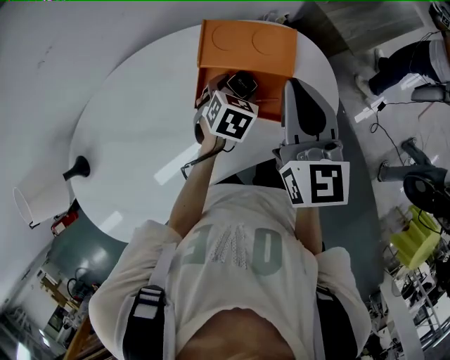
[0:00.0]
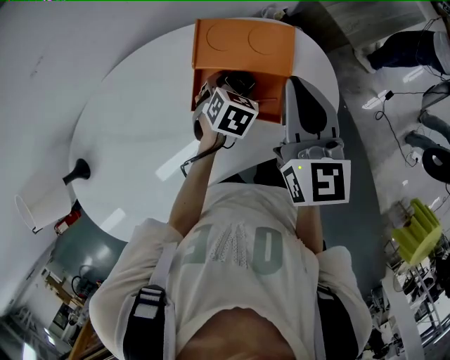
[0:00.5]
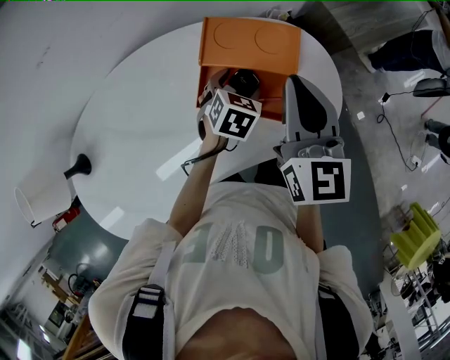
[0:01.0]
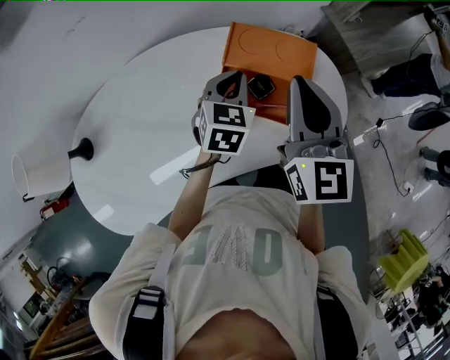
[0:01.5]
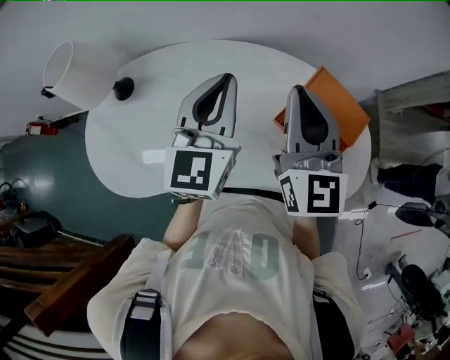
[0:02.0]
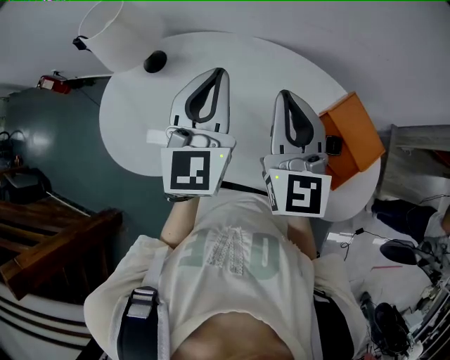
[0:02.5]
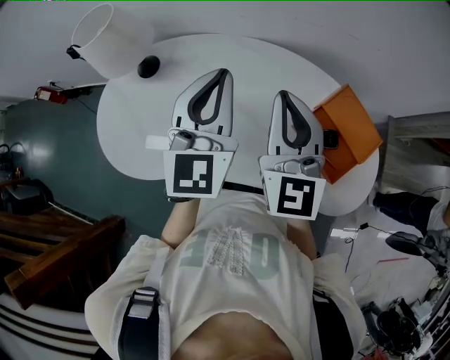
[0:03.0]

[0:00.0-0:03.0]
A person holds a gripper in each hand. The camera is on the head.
0:00.0 to 0:01.5: The right gripper changes place by approximately 5 cm; the left gripper goes some 10 cm upward and to the left, rotates roughly 20 degrees, and closes its fingers.
0:01.5 to 0:03.0: The left gripper ends up some 35 cm from where it was, and angles its fingers upward, by some 40 degrees. The right gripper ends up some 25 cm from where it was, and changes its angle by approximately 30 degrees.

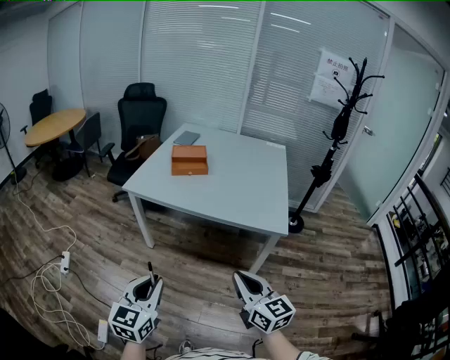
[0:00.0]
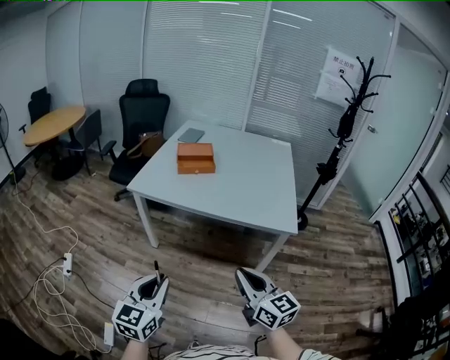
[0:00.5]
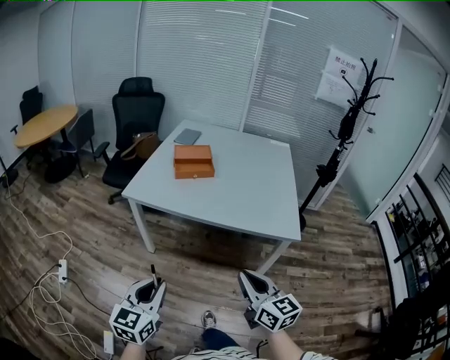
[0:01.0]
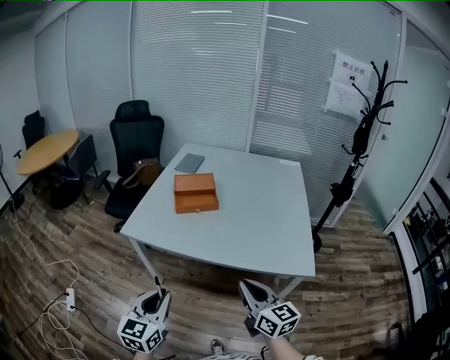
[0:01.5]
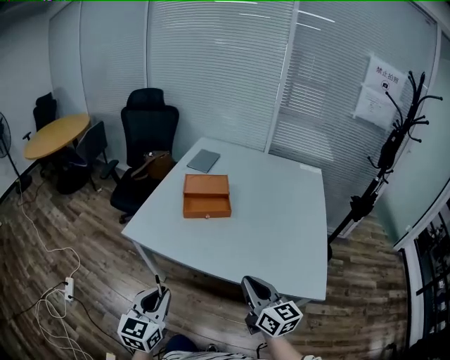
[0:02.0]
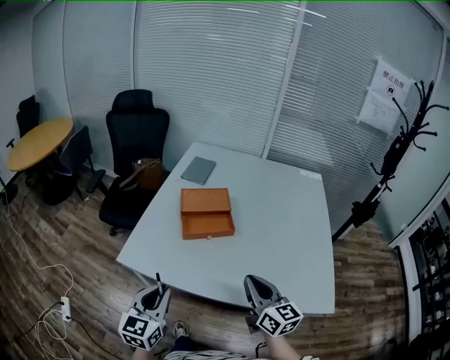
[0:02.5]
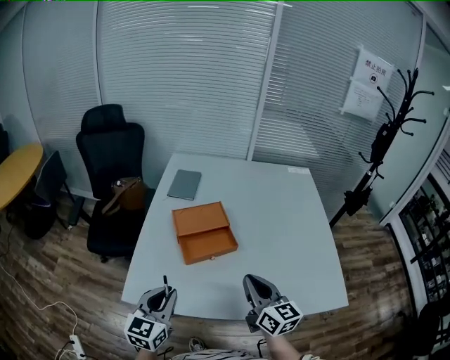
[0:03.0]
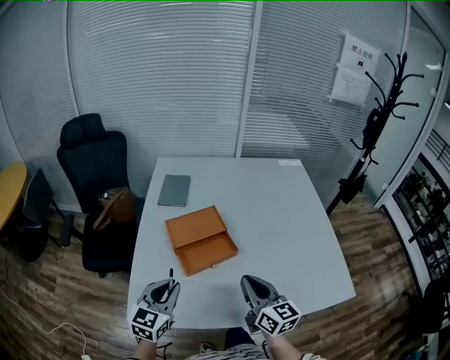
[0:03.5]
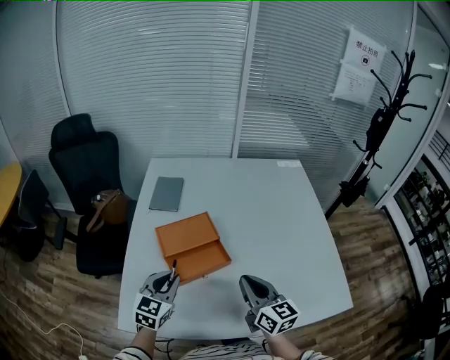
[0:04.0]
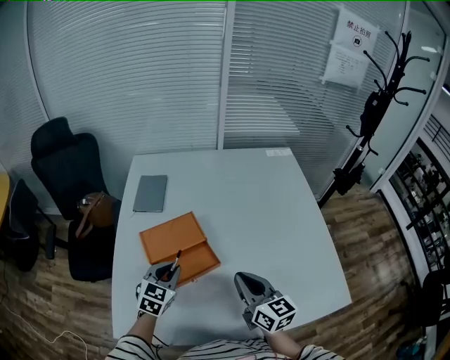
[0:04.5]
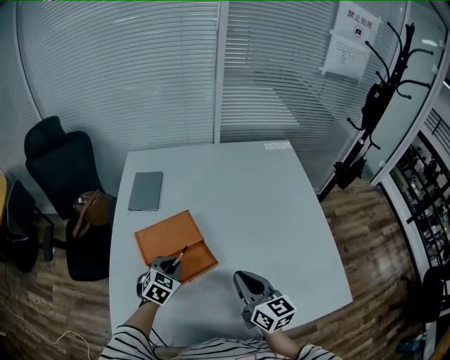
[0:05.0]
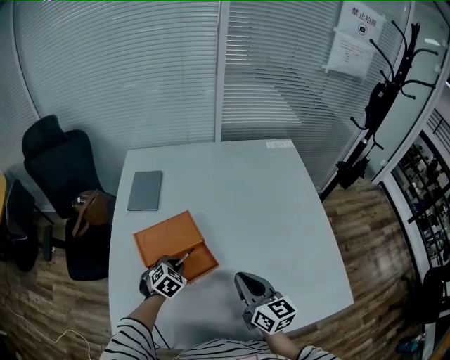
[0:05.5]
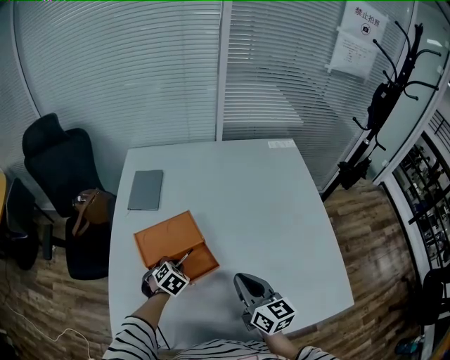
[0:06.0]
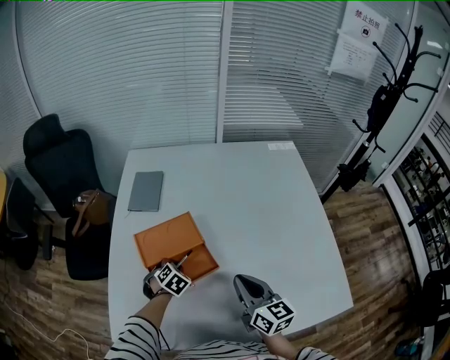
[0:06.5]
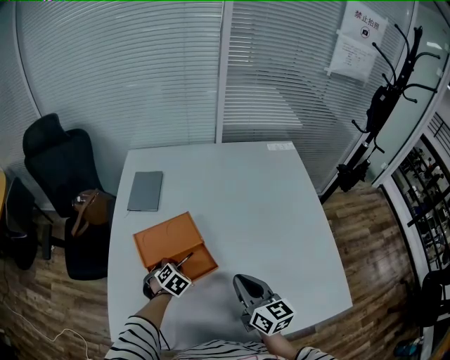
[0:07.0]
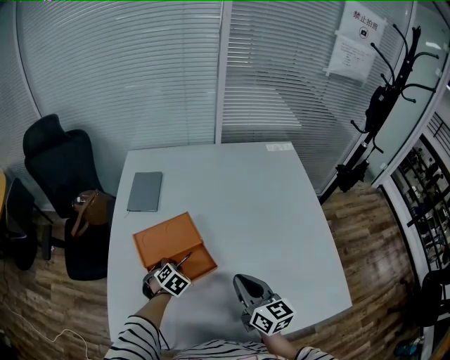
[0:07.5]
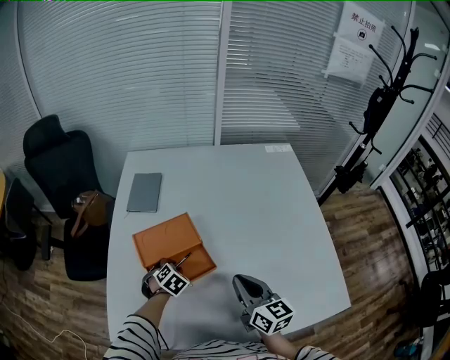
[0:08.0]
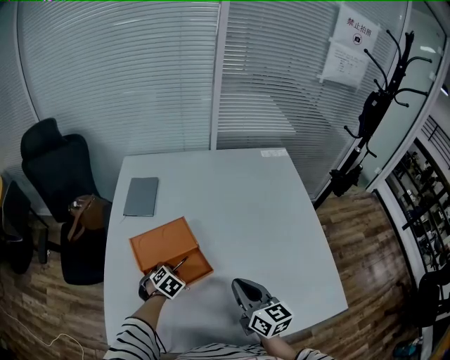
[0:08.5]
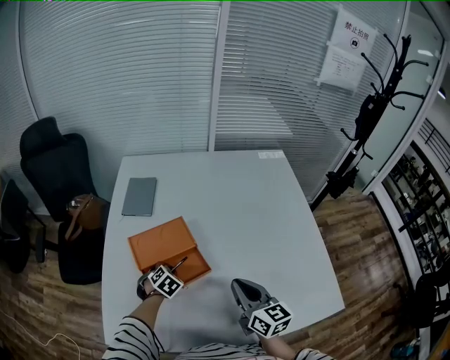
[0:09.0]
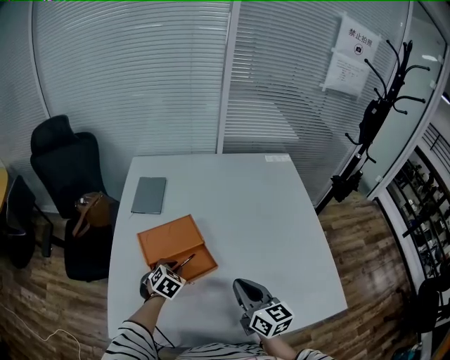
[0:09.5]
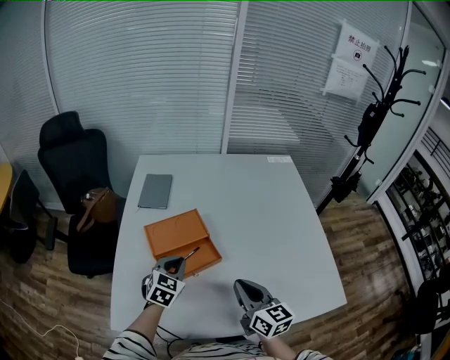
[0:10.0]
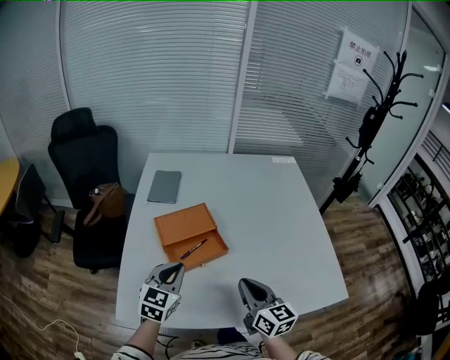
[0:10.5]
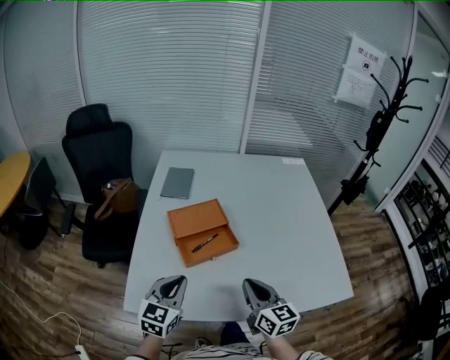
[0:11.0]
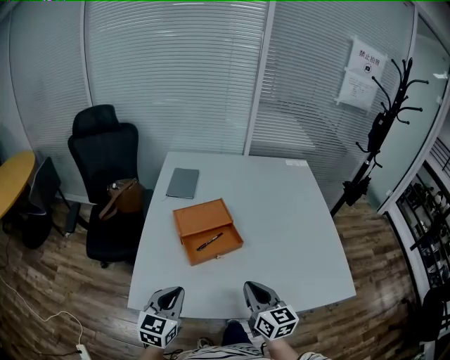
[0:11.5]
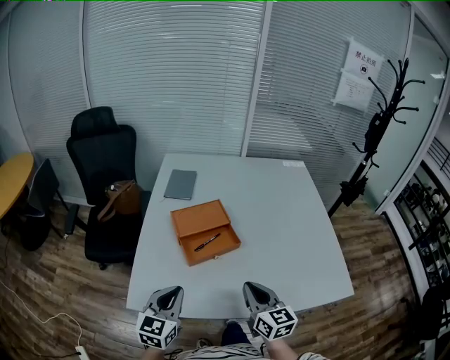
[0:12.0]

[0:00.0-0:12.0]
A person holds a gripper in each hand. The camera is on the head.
0:00.0 to 0:02.0: Both grippers move forward, some 35 cm.
0:02.0 to 0:04.0: Both grippers travel together forward, about 35 cm. The right gripper changes its angle by roughly 20 degrees. The left gripper rotates about 30 degrees.
0:04.0 to 0:06.0: The right gripper travels forward by approximately 5 cm, while the left gripper shifts approximately 20 cm downward and forward, and angles its fingers downward, by some 40 degrees.
0:06.0 to 0:08.0: The two grippers keep their place.
0:08.0 to 0:10.0: The left gripper heads upward, covering about 15 cm, and tilts its fingers approximately 30 degrees upward. Meanwhile the right gripper moves backward, about 5 cm.
0:10.0 to 0:12.0: The right gripper is displaced backward by approximately 10 cm; the left gripper goes some 20 cm backward, and rotates roughly 20 degrees.

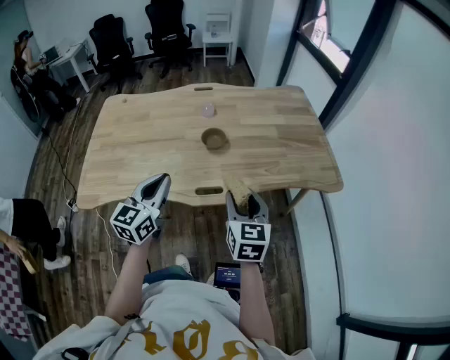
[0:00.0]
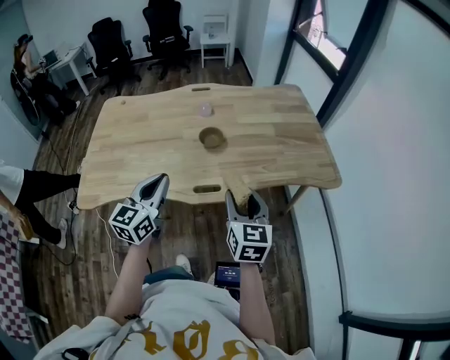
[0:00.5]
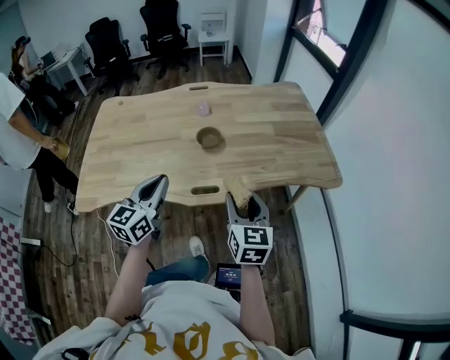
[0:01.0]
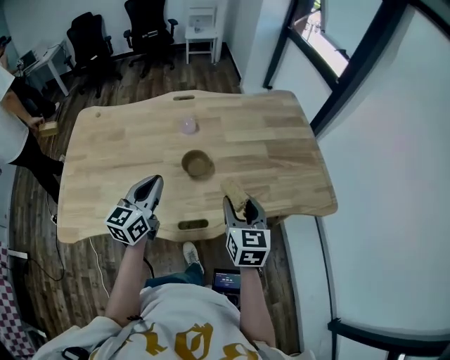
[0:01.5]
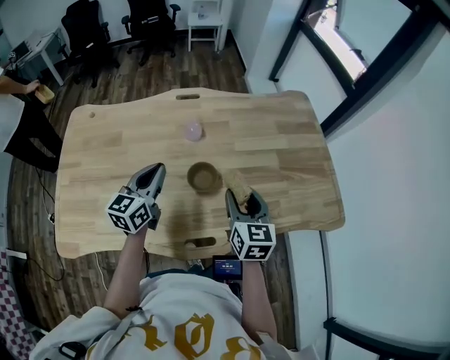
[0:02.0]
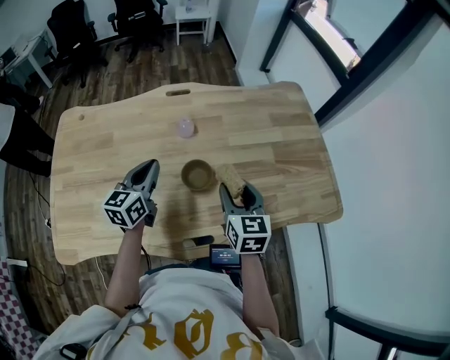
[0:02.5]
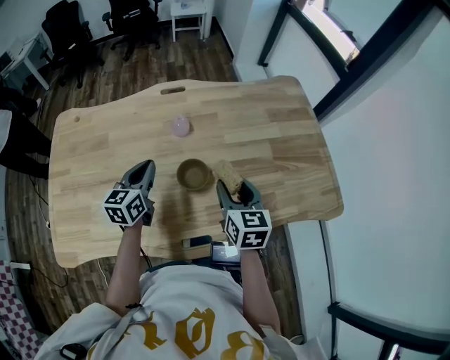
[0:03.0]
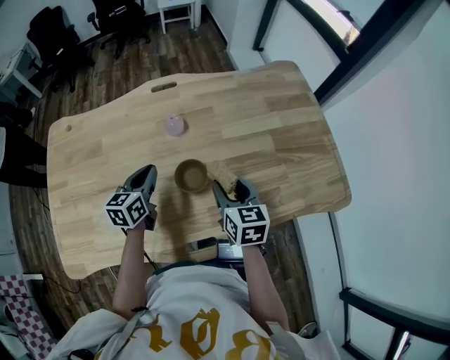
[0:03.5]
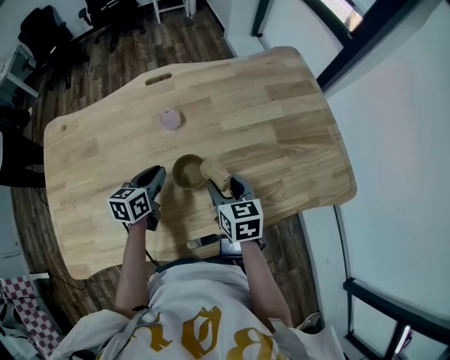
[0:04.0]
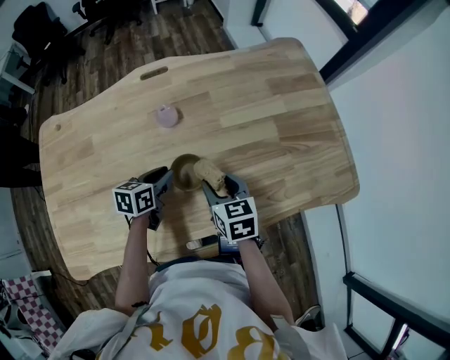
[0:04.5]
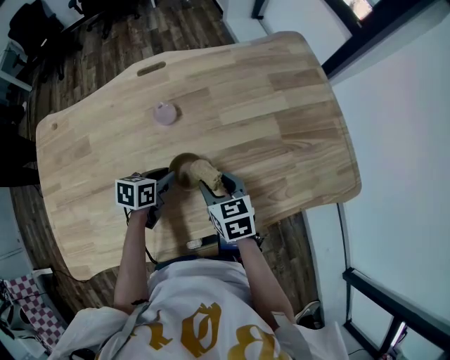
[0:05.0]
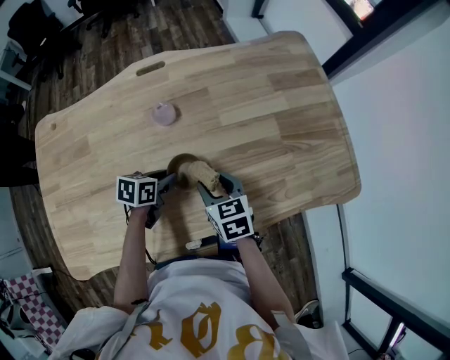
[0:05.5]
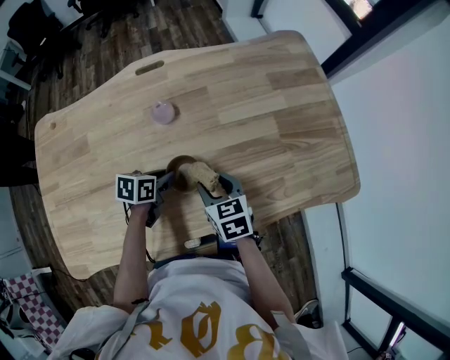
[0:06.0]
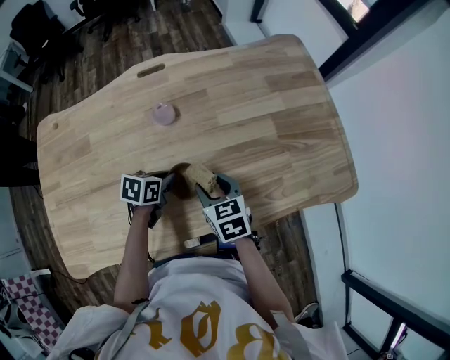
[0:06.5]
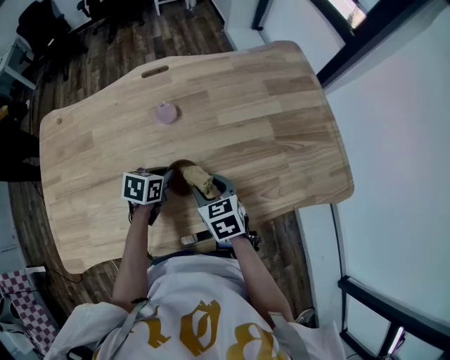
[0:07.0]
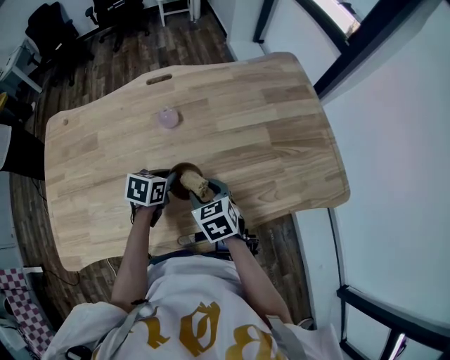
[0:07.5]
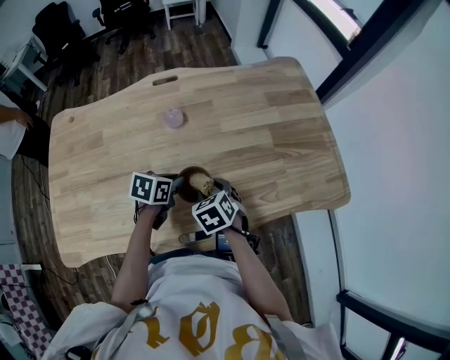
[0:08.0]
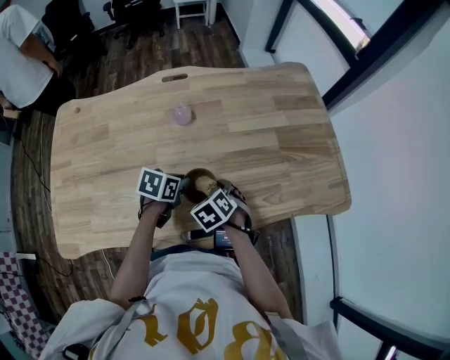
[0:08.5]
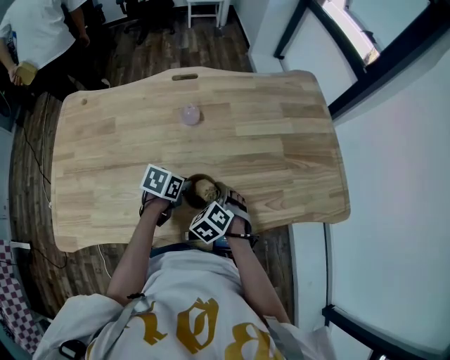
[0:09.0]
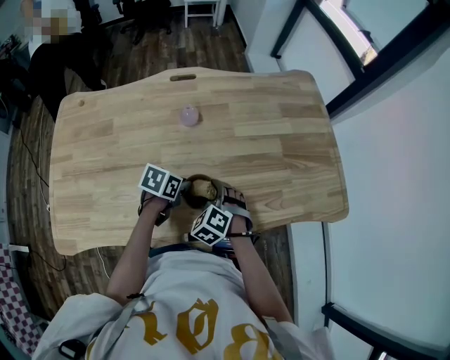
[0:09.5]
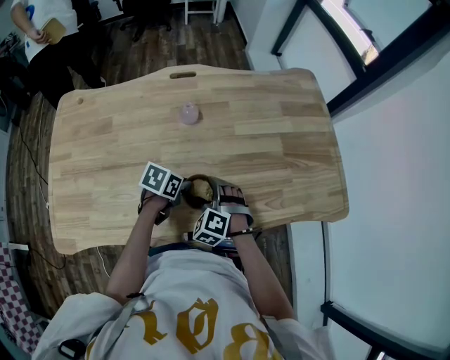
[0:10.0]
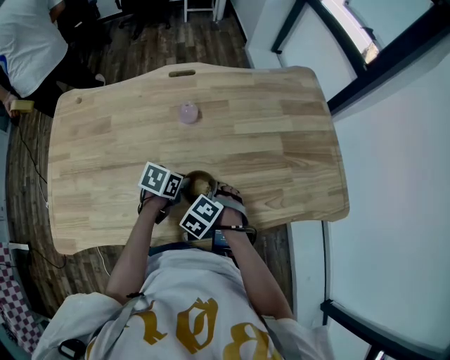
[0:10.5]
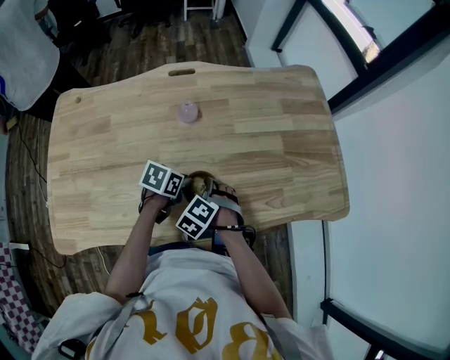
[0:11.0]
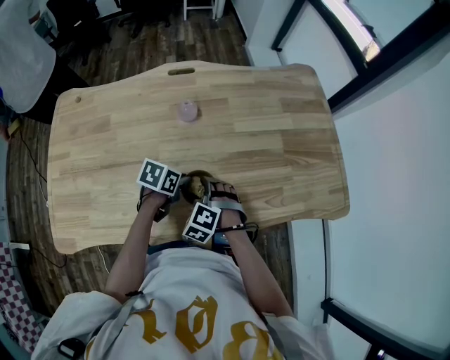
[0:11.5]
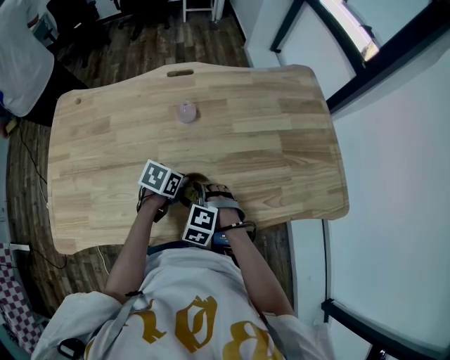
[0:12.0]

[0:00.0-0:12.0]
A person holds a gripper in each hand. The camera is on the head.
0:00.0 to 0:02.0: The grippers both shift forward by about 25 cm.
0:02.0 to 0:04.0: The two grippers go approximately 10 cm downward. The left gripper changes its angle by approximately 30 degrees.
0:04.0 to 0:06.0: The right gripper ends up some 5 cm from where it was. The left gripper is displaced downward by about 10 cm, and changes its angle by some 30 degrees.
0:06.0 to 0:08.0: The left gripper travels upward by roughly 5 cm. Meanwhile the right gripper swivels some 20 degrees.
0:08.0 to 0:10.0: The right gripper rolls counterclockwise, seen from behind, by some 50 degrees.
